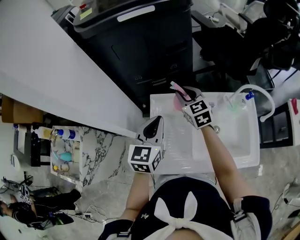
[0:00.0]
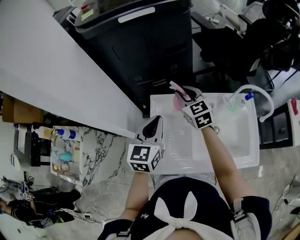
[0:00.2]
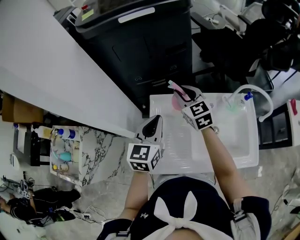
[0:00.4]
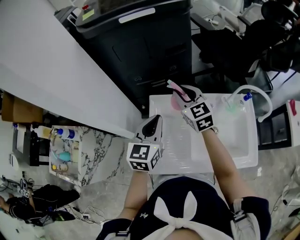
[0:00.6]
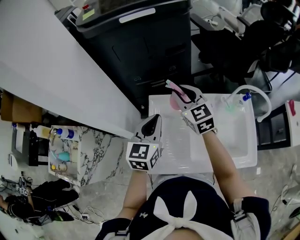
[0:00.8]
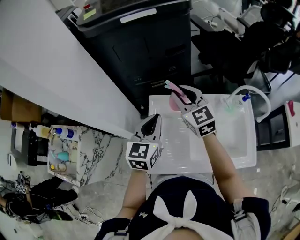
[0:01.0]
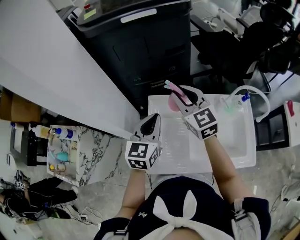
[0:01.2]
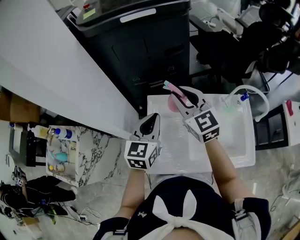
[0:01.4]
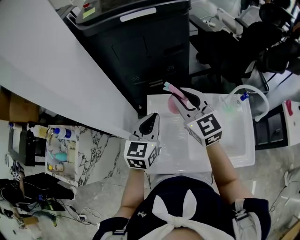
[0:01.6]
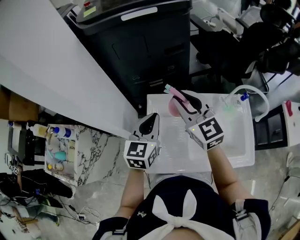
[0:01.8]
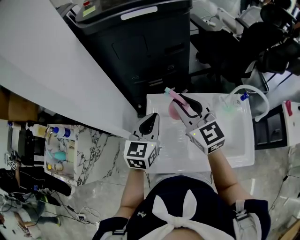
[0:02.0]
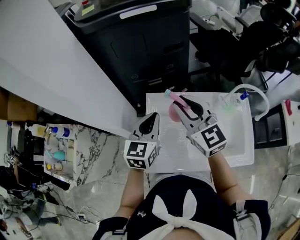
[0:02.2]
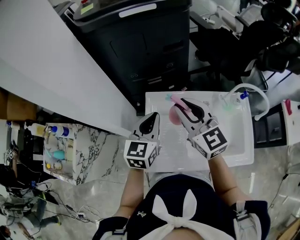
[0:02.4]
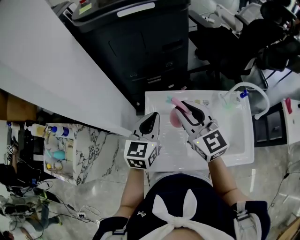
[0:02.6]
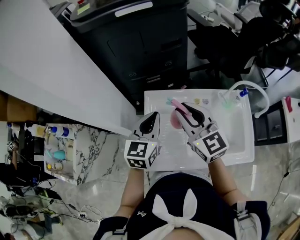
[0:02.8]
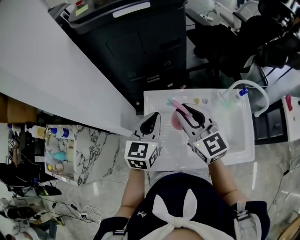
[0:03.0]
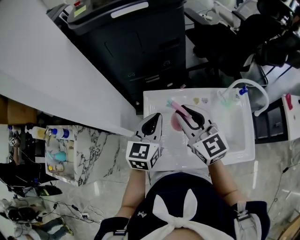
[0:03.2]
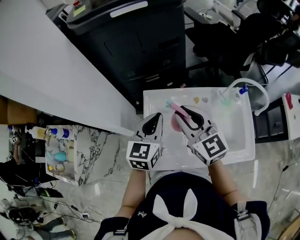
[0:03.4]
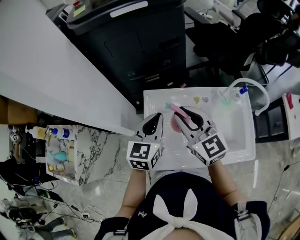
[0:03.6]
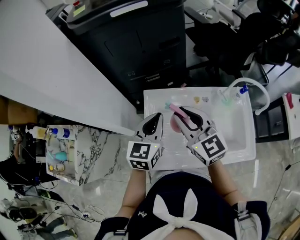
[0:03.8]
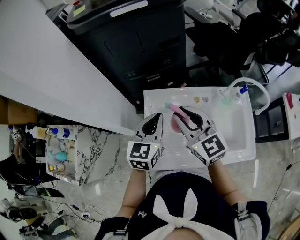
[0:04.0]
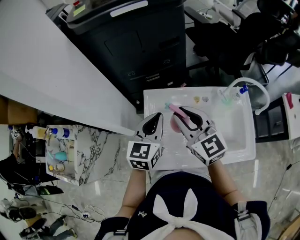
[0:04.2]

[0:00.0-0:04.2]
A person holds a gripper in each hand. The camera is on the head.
0:00.0 to 0:01.4: The right gripper moves upward and backward, approximately 15 cm.
0:01.4 to 0:02.8: The right gripper is displaced backward by some 5 cm.
0:02.8 to 0:04.2: The grippers make only small movements.

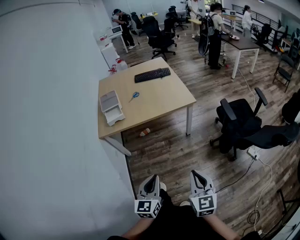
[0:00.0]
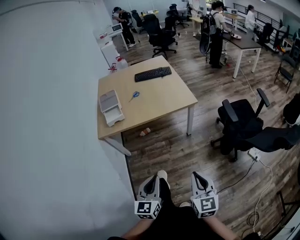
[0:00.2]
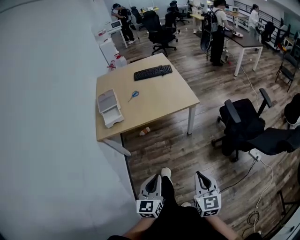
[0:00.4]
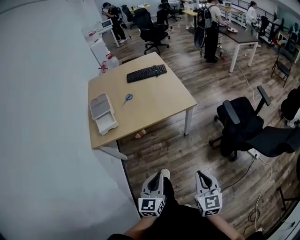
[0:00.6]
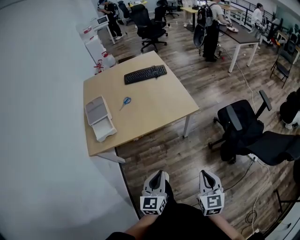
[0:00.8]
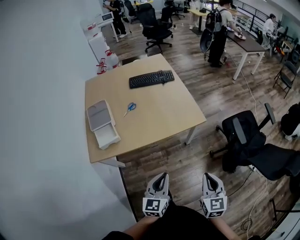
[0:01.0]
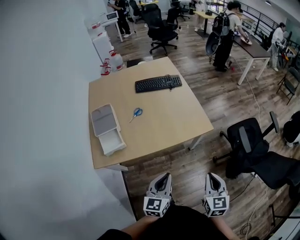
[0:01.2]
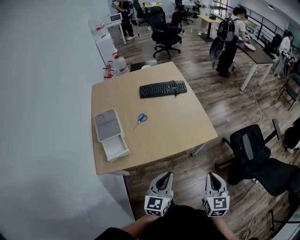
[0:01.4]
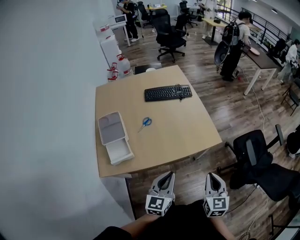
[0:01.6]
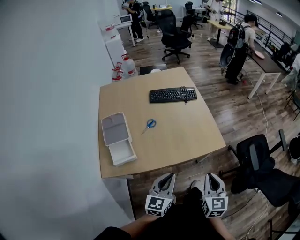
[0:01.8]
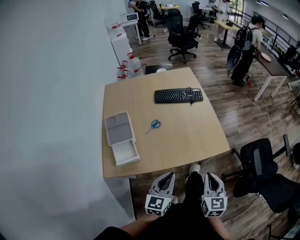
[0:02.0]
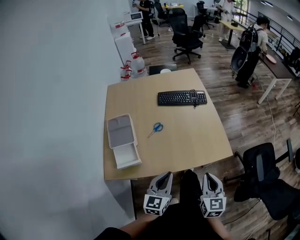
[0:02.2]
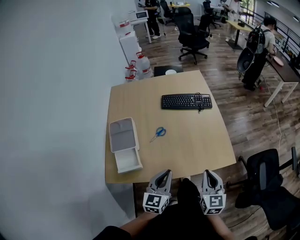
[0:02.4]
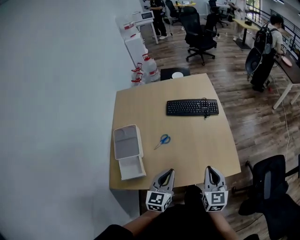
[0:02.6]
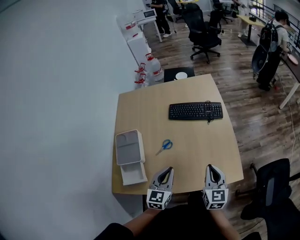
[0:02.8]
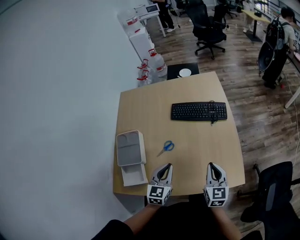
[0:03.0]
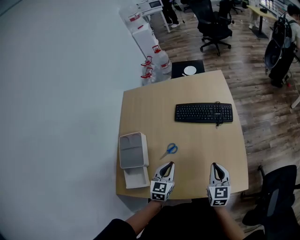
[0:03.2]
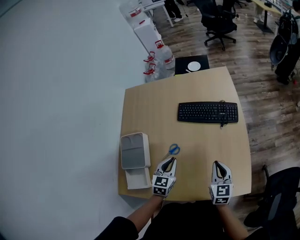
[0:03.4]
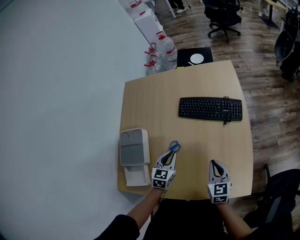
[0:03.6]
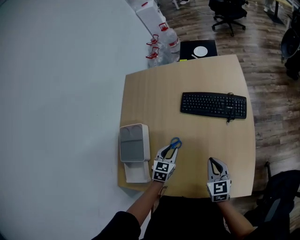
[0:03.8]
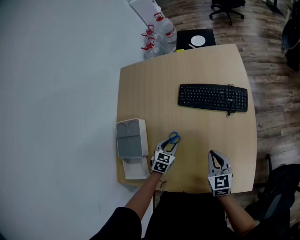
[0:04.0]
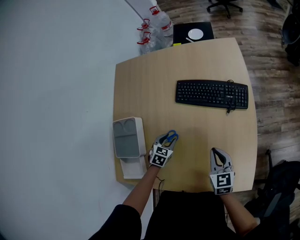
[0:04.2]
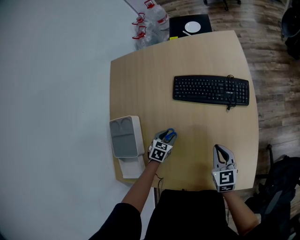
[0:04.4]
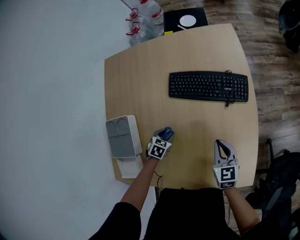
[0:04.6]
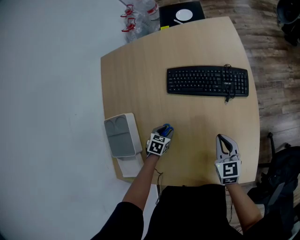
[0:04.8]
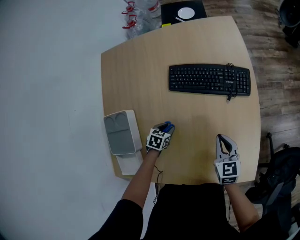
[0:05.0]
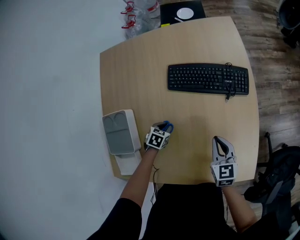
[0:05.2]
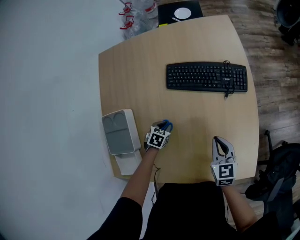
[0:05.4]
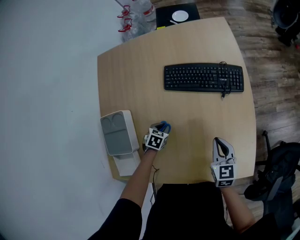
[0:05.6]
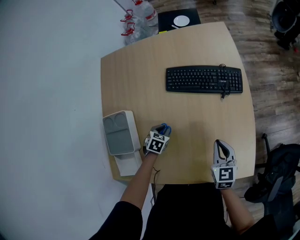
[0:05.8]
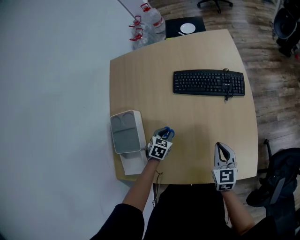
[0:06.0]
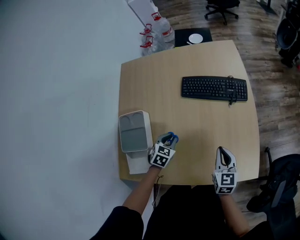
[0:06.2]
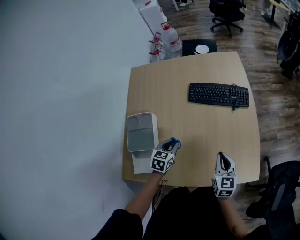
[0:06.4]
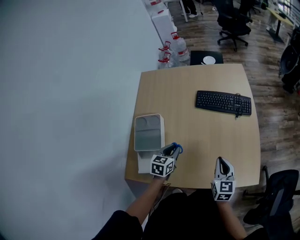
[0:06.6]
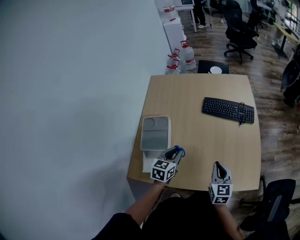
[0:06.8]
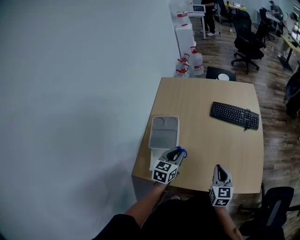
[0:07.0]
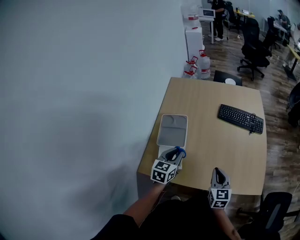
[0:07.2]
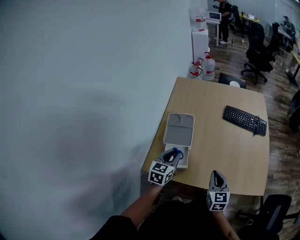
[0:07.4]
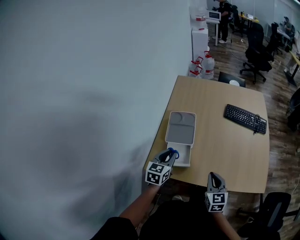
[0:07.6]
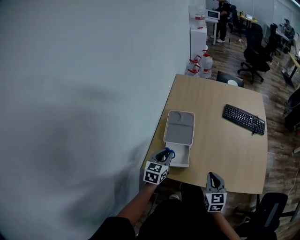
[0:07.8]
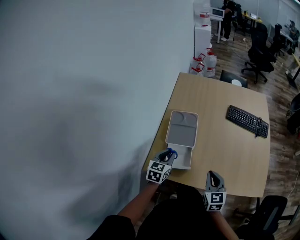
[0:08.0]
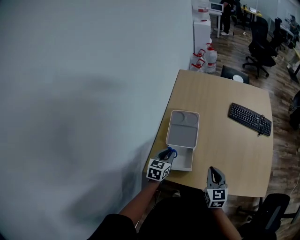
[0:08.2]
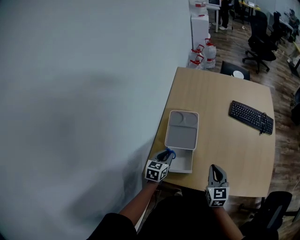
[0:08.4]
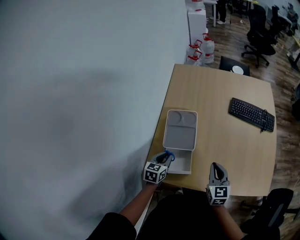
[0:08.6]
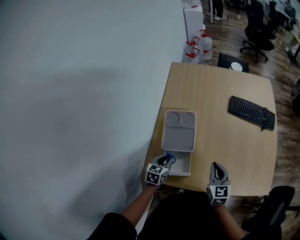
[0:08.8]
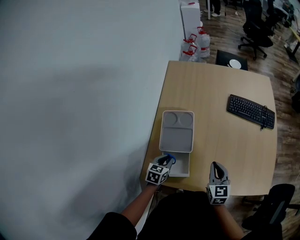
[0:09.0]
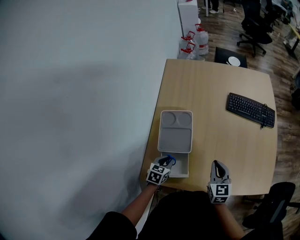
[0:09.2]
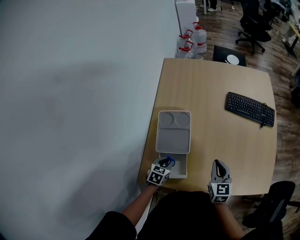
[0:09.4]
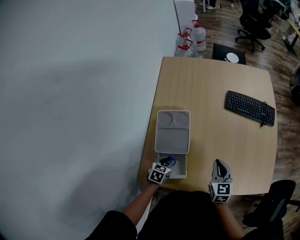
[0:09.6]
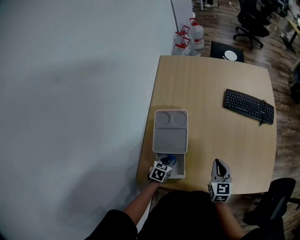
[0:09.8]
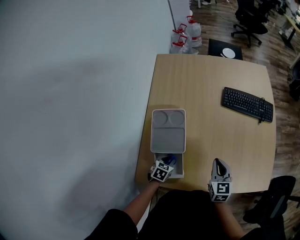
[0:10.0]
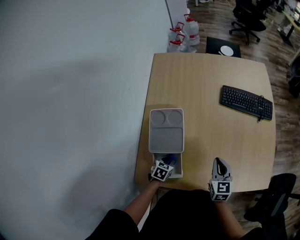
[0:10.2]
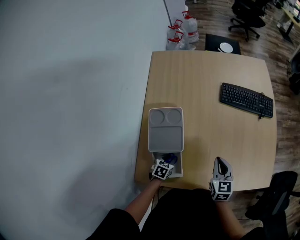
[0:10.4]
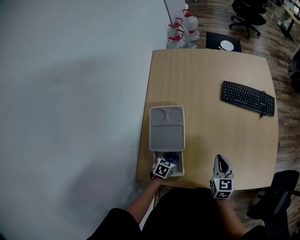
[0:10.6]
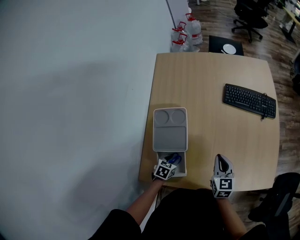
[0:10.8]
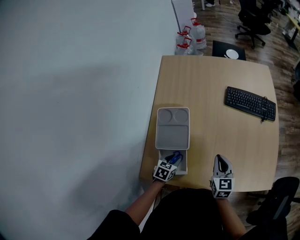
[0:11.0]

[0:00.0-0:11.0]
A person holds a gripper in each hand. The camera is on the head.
0:00.0 to 0:01.6: Both grippers are carried forward, about 50 cm.
0:01.6 to 0:03.2: Both grippers move forward, about 35 cm. The left gripper rotates approximately 30 degrees.
0:03.2 to 0:04.8: The left gripper moves downward and forward, roughly 30 cm, tilts its fingers approximately 40 degrees downward, and opens its fingers; the right gripper travels forward and downward by roughly 20 cm.
0:04.8 to 0:06.2: The left gripper shifts approximately 15 cm upward and backward; the right gripper heads backward and upward, covering roughly 10 cm.
0:06.2 to 0:07.8: The right gripper shifts some 35 cm to the left and backward, and changes its angle by approximately 20 degrees. Meanwhile the left gripper shifts approximately 35 cm to the left, backward and upward, and turns by approximately 40 degrees.
0:07.8 to 0:09.4: The left gripper travels downward by roughly 20 cm, and rotates approximately 30 degrees, while the right gripper heads forward, covering about 15 cm.

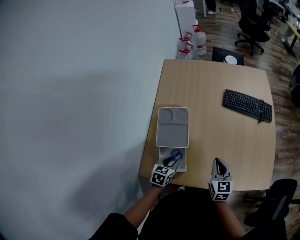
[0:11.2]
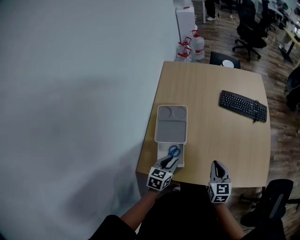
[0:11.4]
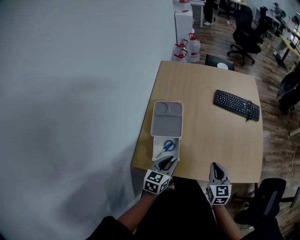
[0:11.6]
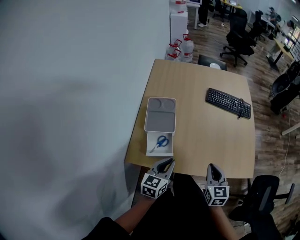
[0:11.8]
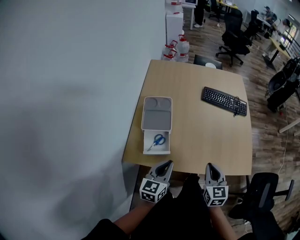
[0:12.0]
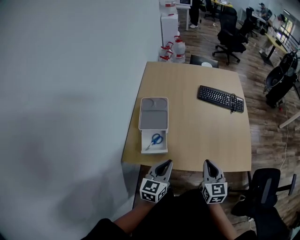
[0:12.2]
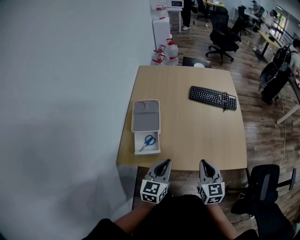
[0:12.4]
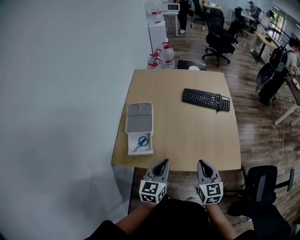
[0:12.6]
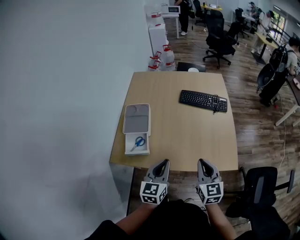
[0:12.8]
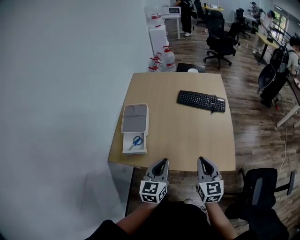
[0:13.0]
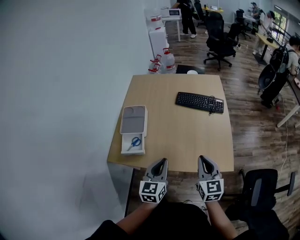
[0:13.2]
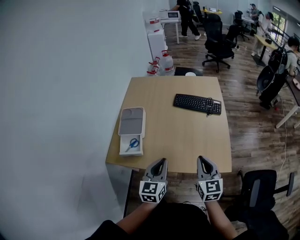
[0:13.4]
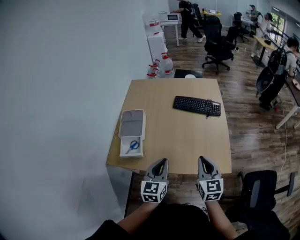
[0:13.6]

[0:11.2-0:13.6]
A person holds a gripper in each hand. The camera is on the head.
0:11.2 to 0:12.4: The right gripper is displaced backward, upward and to the right by about 20 cm. Meanwhile the left gripper shifts roughly 25 cm upward, backward and to the right, turns by some 30 degrees, and closes its fingers.
0:12.4 to 0:13.6: The left gripper is displaced to the right by some 15 cm, while the right gripper is displaced to the right and upward by approximately 15 cm.

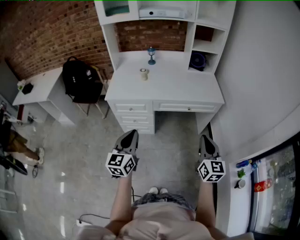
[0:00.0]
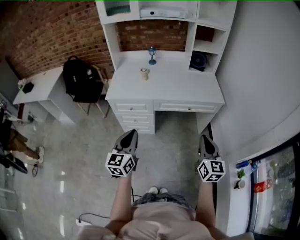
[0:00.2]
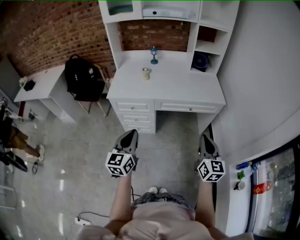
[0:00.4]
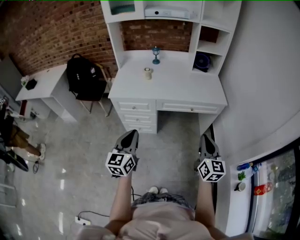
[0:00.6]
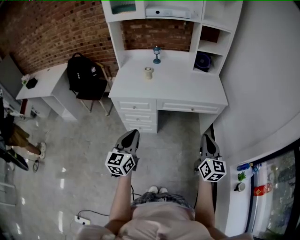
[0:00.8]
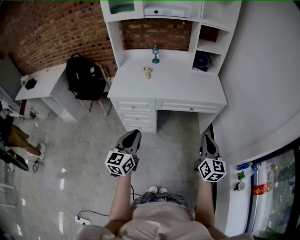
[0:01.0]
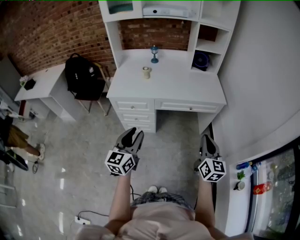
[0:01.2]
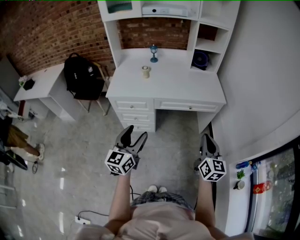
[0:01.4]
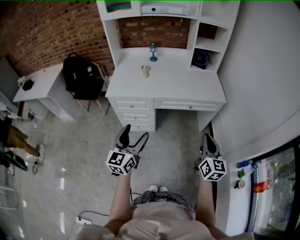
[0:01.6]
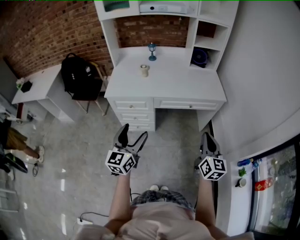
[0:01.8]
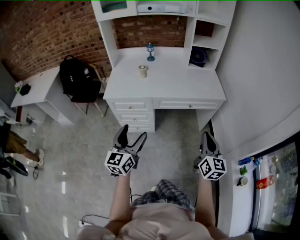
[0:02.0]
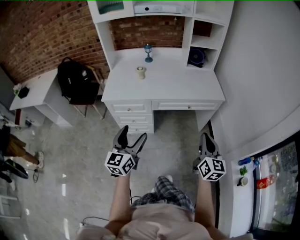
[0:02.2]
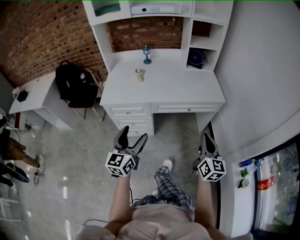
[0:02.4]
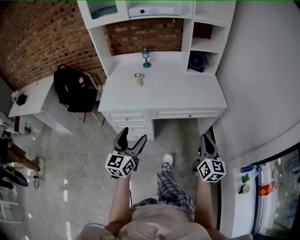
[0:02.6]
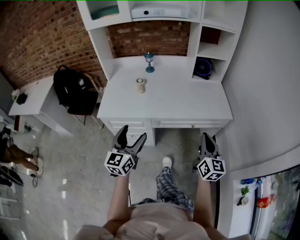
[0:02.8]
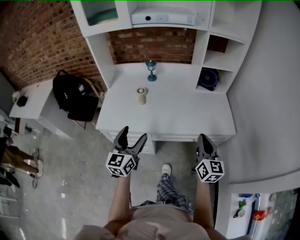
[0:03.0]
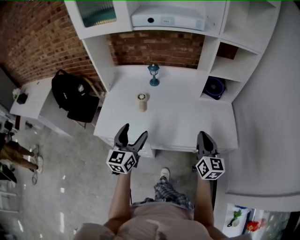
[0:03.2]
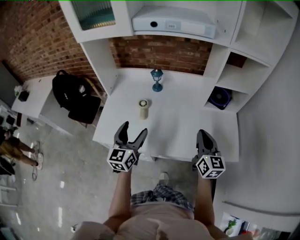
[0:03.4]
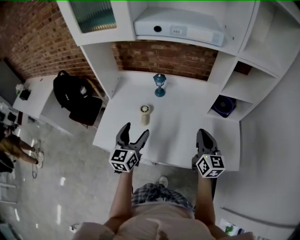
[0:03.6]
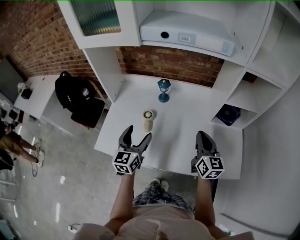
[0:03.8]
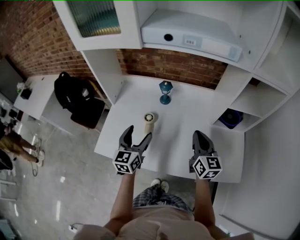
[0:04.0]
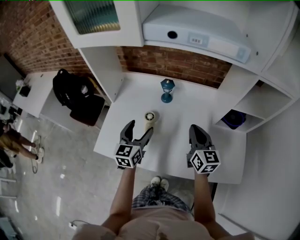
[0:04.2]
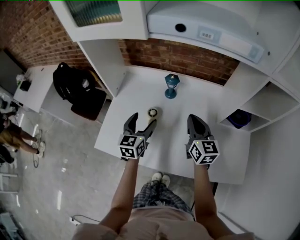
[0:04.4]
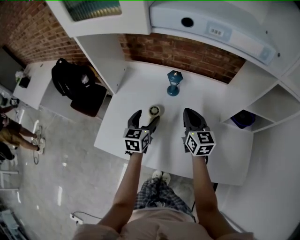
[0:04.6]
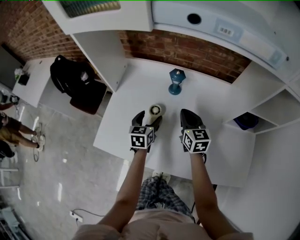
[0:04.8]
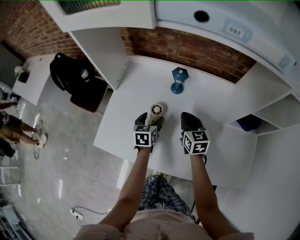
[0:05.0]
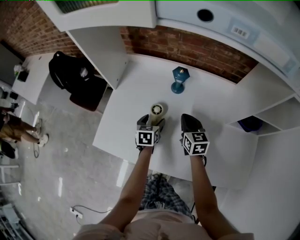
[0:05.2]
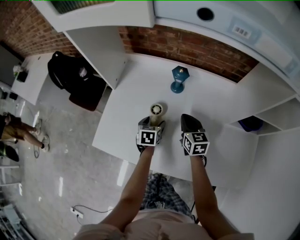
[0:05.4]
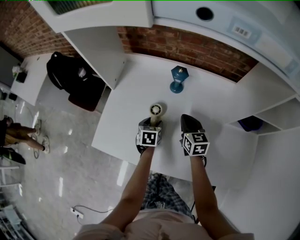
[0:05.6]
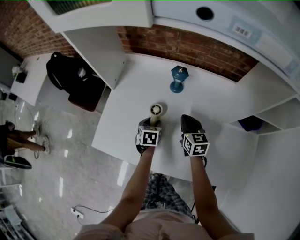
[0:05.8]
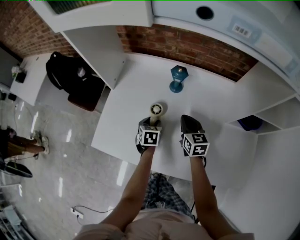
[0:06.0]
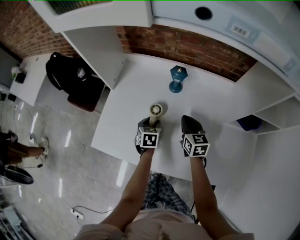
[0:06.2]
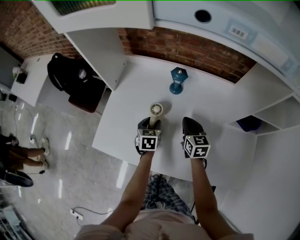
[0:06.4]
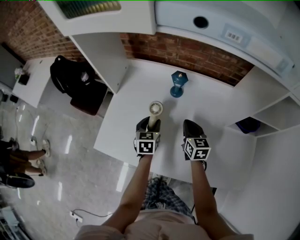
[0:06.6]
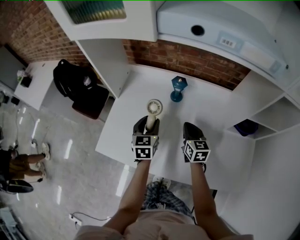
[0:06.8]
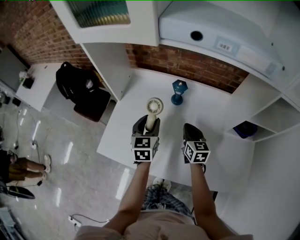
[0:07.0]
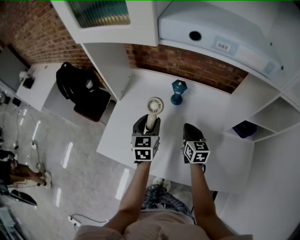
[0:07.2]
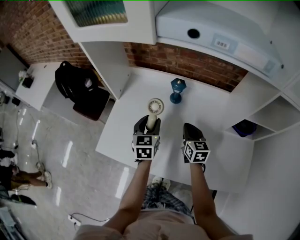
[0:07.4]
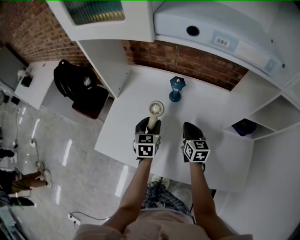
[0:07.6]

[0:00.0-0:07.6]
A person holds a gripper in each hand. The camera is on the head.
0:00.0 to 0:01.6: The left gripper opens up.
0:01.6 to 0:03.0: Both grippers move forward, approximately 30 cm.
0:03.0 to 0:04.6: Both grippers are carried forward, roughly 50 cm. The right gripper turns by approximately 30 degrees; the left gripper changes its angle by some 20 degrees.
0:04.6 to 0:06.0: Both grippers move downward, about 15 cm. The left gripper rotates some 30 degrees, and closes.
0:06.0 to 0:07.6: The left gripper travels upward by about 15 cm, and rotates some 20 degrees.
